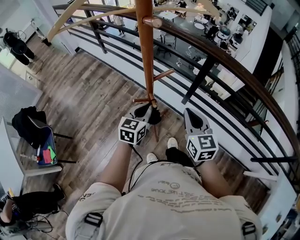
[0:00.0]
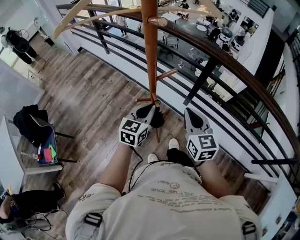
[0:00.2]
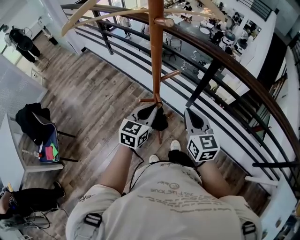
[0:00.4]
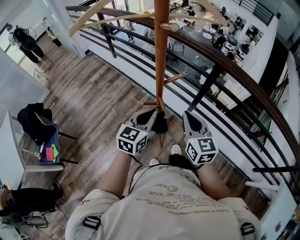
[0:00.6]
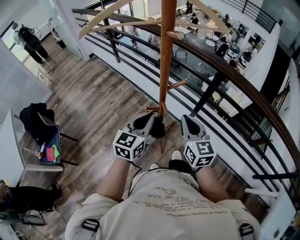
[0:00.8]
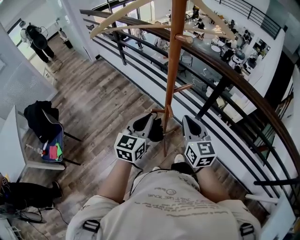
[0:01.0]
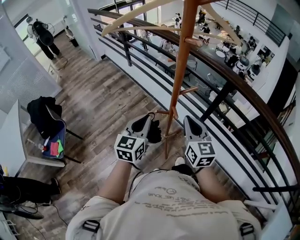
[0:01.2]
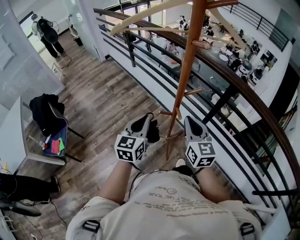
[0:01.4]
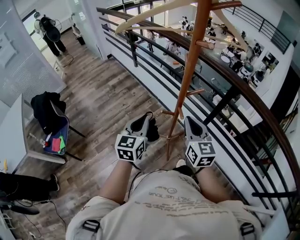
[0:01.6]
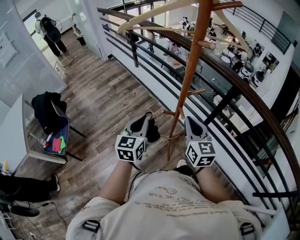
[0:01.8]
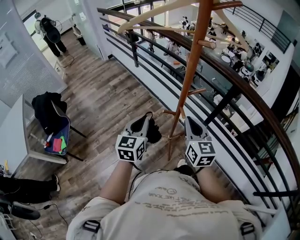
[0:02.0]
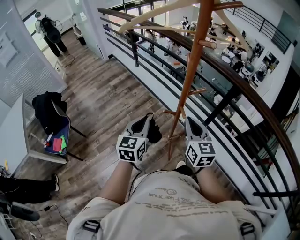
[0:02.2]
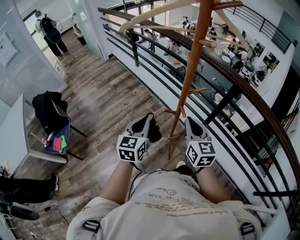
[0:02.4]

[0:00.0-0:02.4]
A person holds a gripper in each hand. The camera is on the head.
0:00.0 to 0:01.2: The left gripper travels to the left, upward and backward by some 15 cm, while the right gripper heads to the left, covering approximately 10 cm.
0:01.2 to 0:02.4: There are only small adjustments of the grippers.

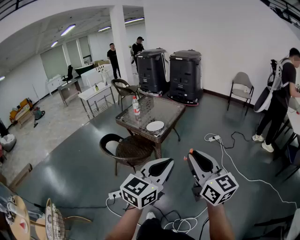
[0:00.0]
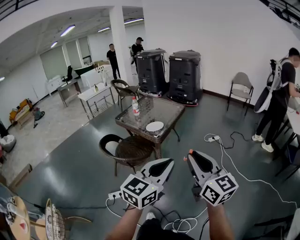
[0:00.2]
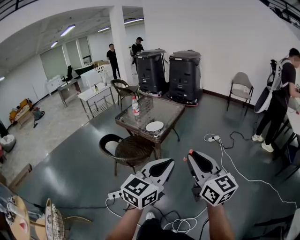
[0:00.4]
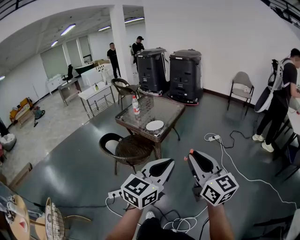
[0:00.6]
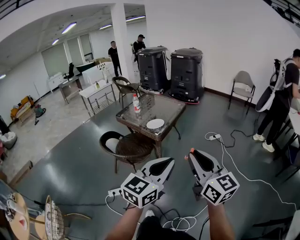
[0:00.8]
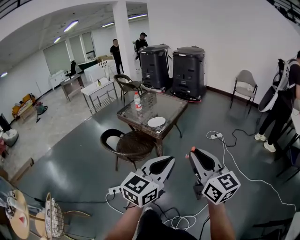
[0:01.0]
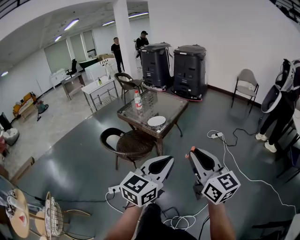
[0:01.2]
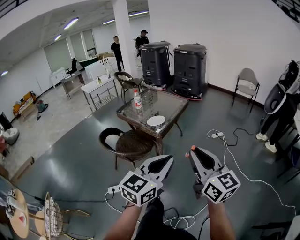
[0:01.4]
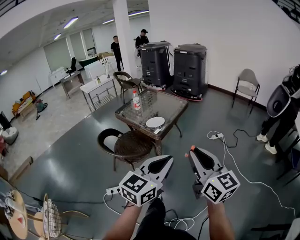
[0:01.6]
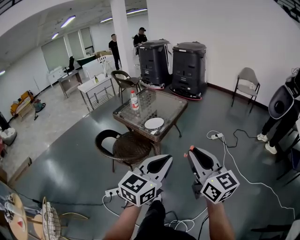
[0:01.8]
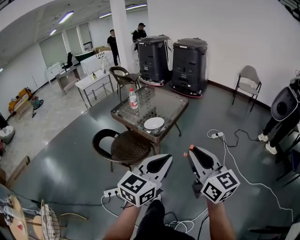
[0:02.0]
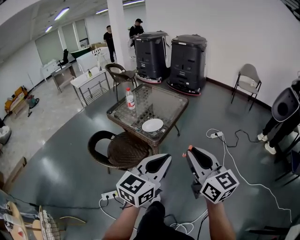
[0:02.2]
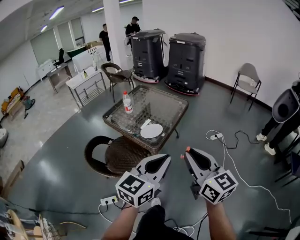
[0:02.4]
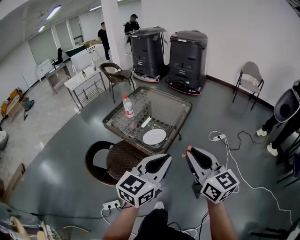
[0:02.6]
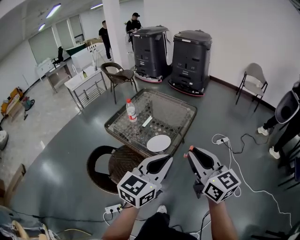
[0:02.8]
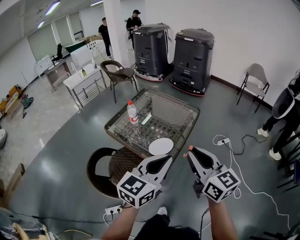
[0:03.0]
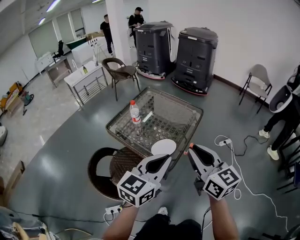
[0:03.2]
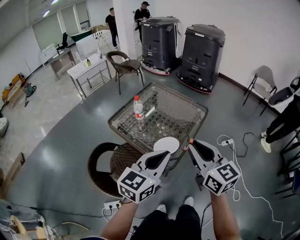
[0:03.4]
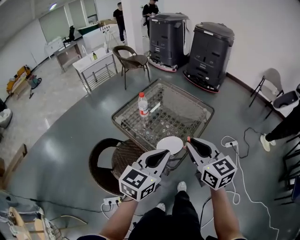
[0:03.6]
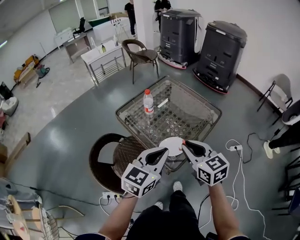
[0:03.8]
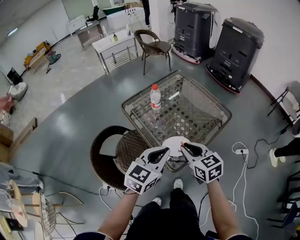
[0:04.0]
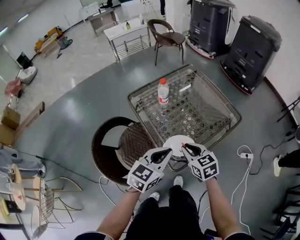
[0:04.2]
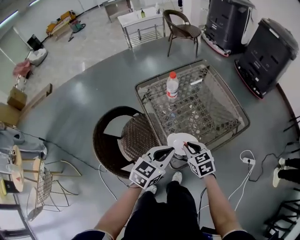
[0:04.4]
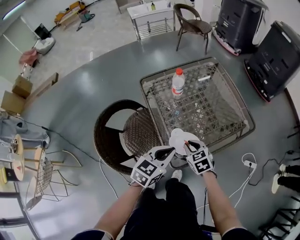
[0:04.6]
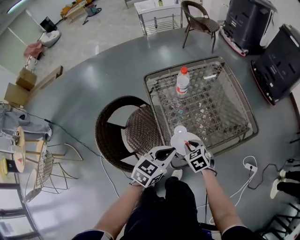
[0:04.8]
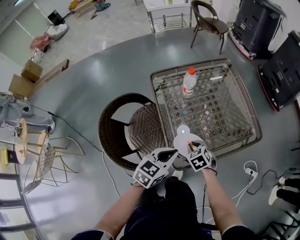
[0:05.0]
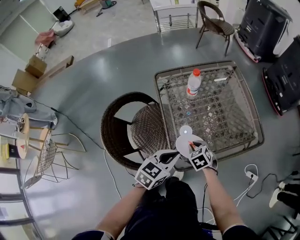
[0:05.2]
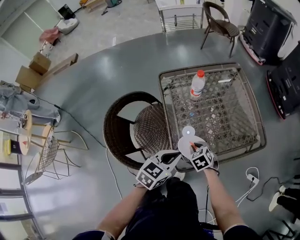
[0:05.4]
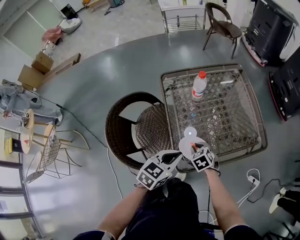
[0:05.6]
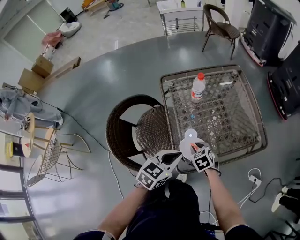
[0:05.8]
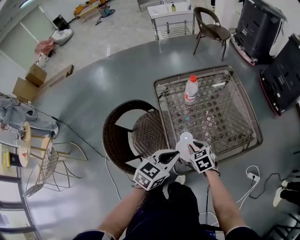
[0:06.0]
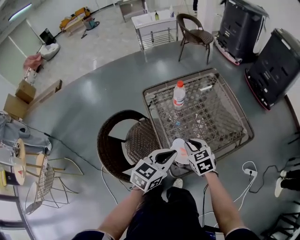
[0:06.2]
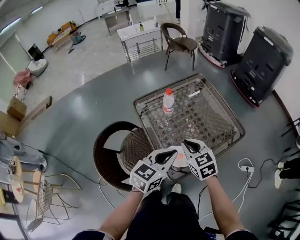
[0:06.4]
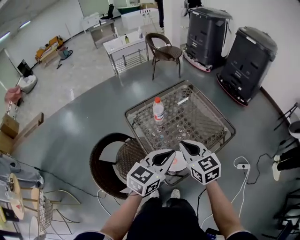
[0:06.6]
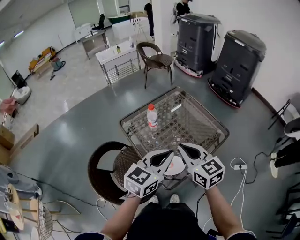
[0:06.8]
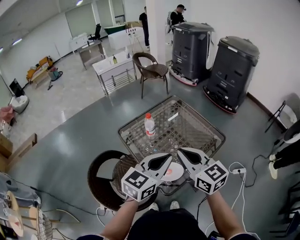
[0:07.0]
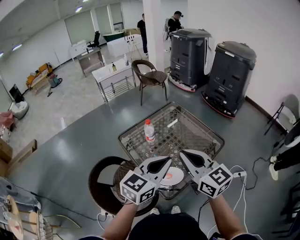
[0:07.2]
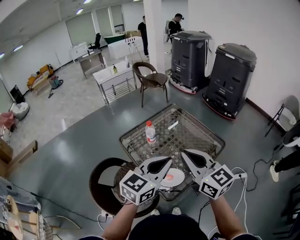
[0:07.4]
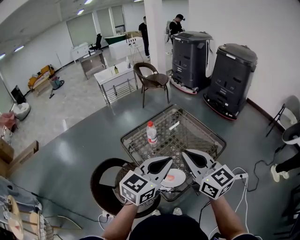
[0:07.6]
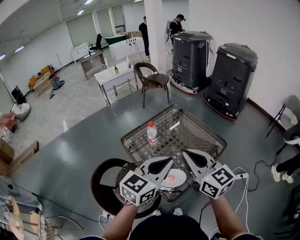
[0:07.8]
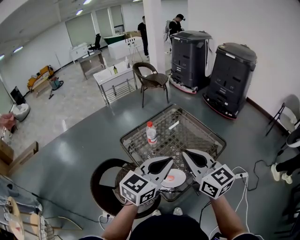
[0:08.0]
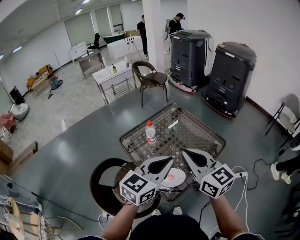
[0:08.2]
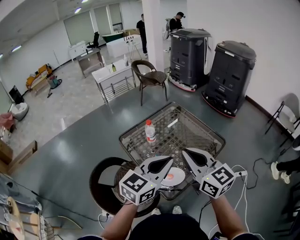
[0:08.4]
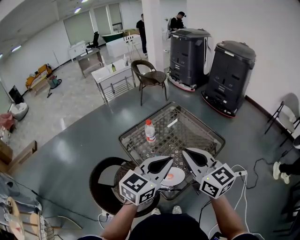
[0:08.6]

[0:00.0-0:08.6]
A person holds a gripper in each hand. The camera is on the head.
0:00.0 to 0:01.4: The grippers make only small movements.
0:01.4 to 0:02.8: Both grippers move forward, approximately 35 cm.
0:02.8 to 0:04.4: The left gripper heads downward, covering some 20 cm, and changes its angle by roughly 30 degrees, while the right gripper heads downward, covering approximately 30 cm, and angles its fingers downward, by some 40 degrees.
0:04.4 to 0:05.8: The right gripper moves downward, roughly 10 cm, and turns by approximately 20 degrees.
0:05.8 to 0:07.2: The right gripper heads upward, covering approximately 40 cm, and angles its fingers upward, by roughly 60 degrees. Meanwhile the left gripper is displaced upward by about 20 cm, and changes its angle by roughly 30 degrees.
0:07.2 to 0:08.6: There are only small adjustments of the grippers.

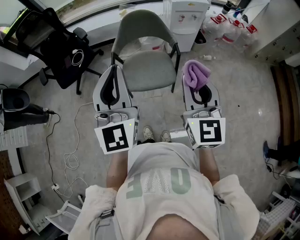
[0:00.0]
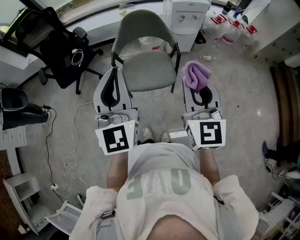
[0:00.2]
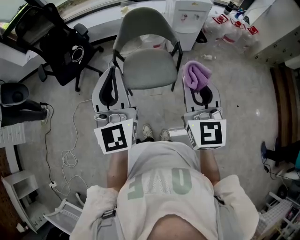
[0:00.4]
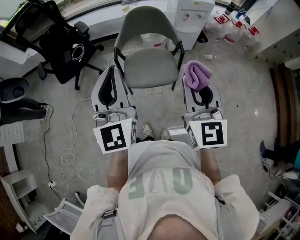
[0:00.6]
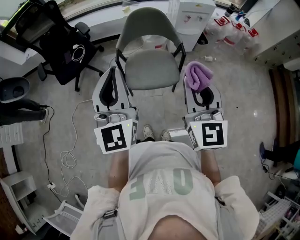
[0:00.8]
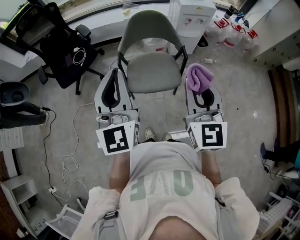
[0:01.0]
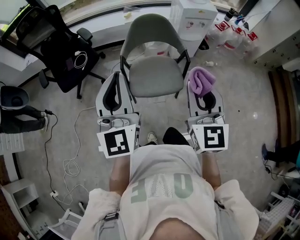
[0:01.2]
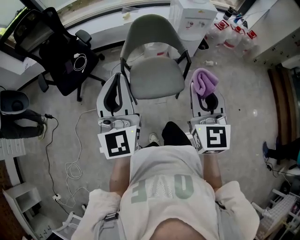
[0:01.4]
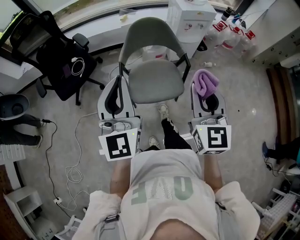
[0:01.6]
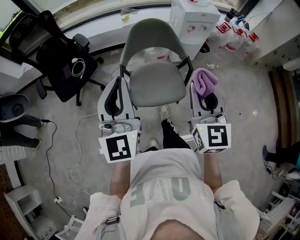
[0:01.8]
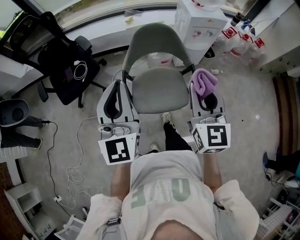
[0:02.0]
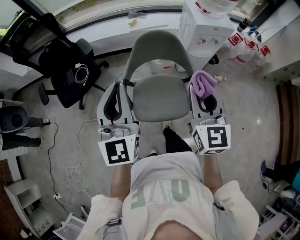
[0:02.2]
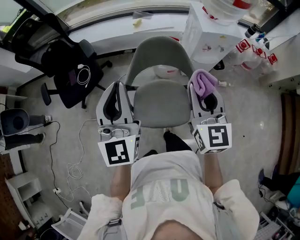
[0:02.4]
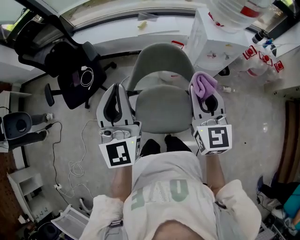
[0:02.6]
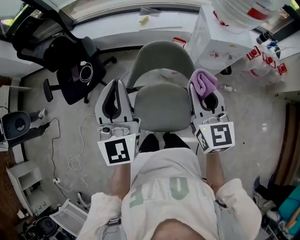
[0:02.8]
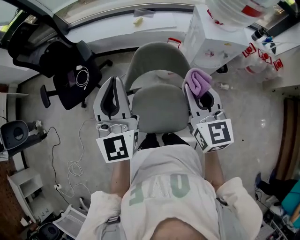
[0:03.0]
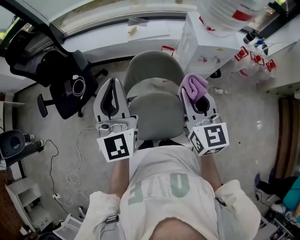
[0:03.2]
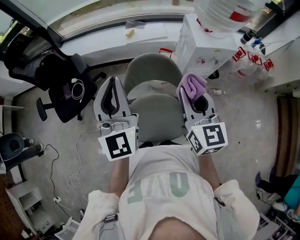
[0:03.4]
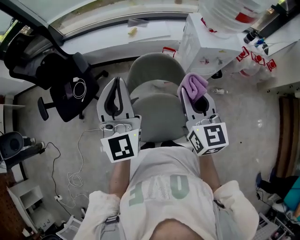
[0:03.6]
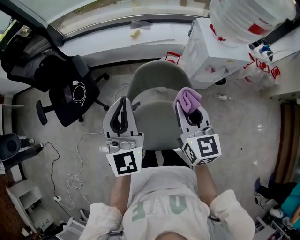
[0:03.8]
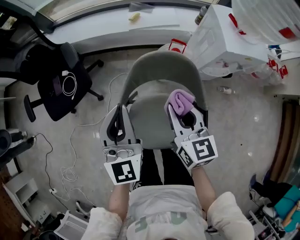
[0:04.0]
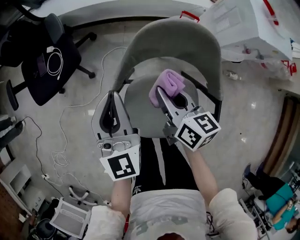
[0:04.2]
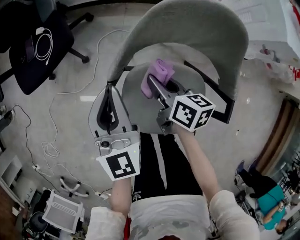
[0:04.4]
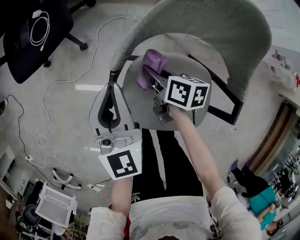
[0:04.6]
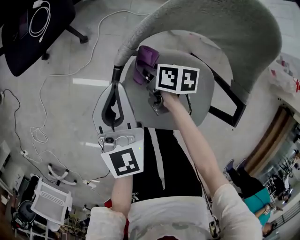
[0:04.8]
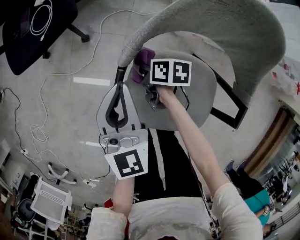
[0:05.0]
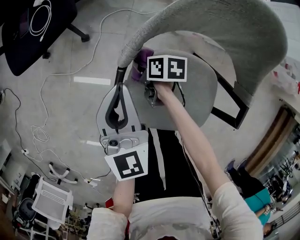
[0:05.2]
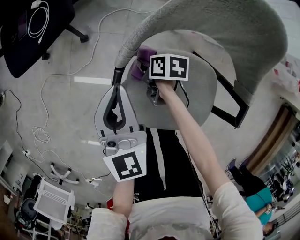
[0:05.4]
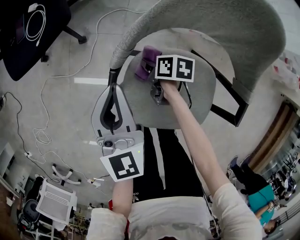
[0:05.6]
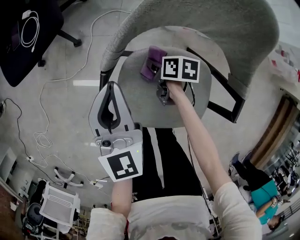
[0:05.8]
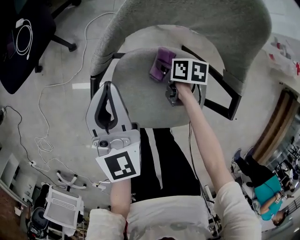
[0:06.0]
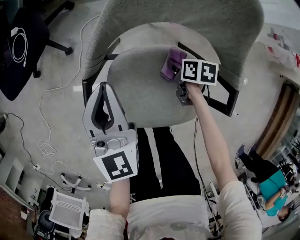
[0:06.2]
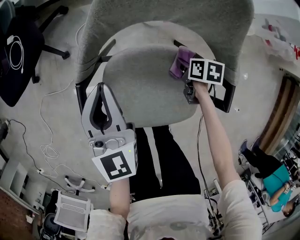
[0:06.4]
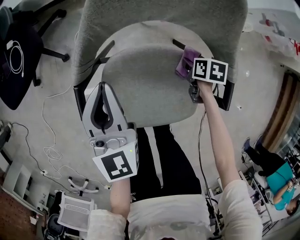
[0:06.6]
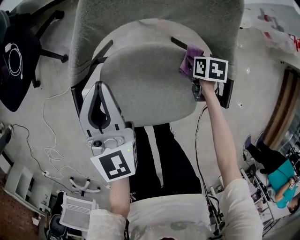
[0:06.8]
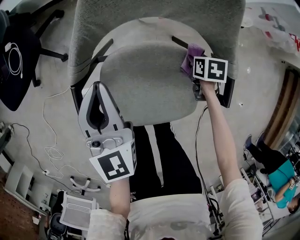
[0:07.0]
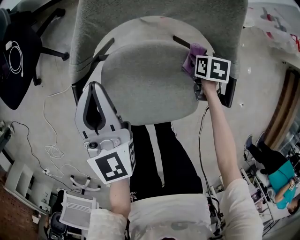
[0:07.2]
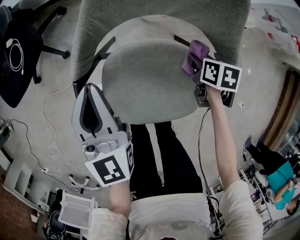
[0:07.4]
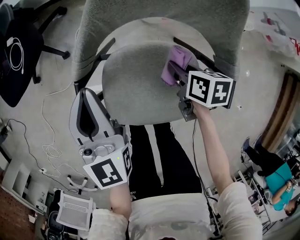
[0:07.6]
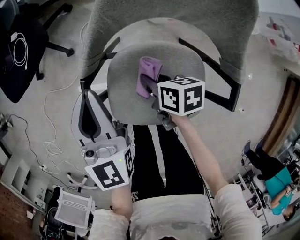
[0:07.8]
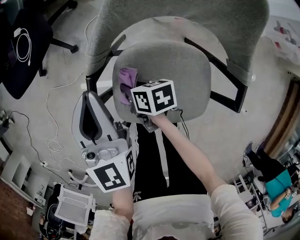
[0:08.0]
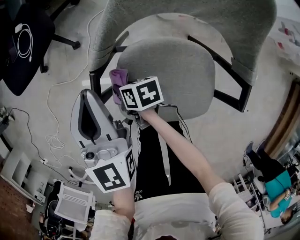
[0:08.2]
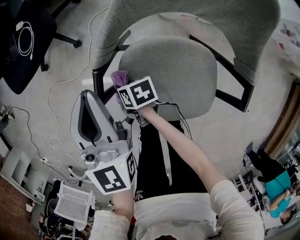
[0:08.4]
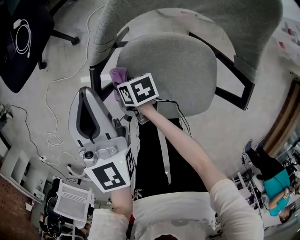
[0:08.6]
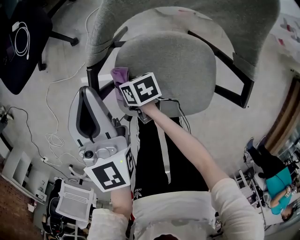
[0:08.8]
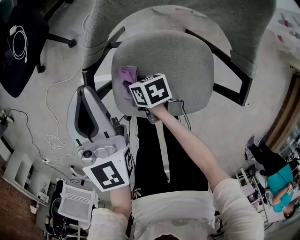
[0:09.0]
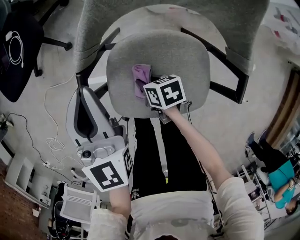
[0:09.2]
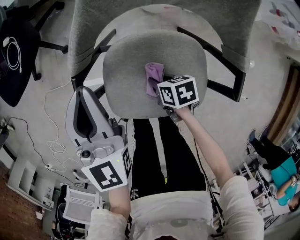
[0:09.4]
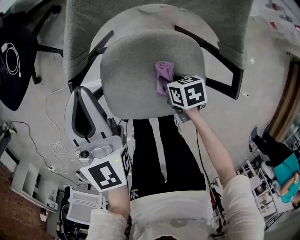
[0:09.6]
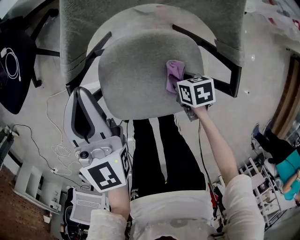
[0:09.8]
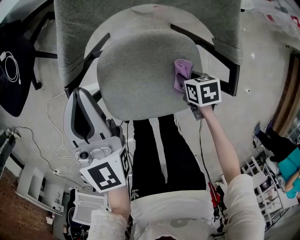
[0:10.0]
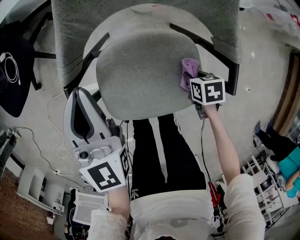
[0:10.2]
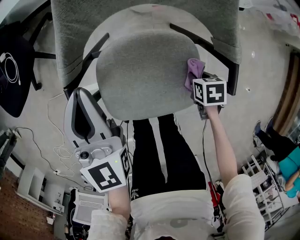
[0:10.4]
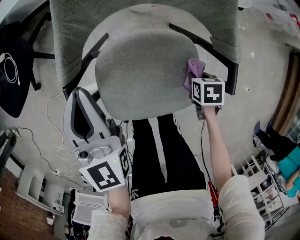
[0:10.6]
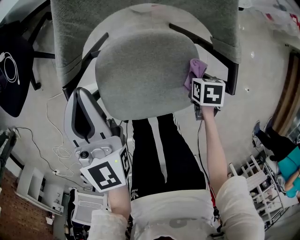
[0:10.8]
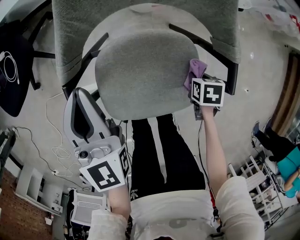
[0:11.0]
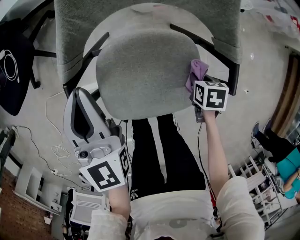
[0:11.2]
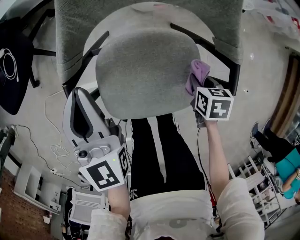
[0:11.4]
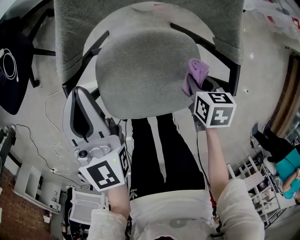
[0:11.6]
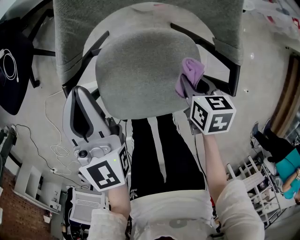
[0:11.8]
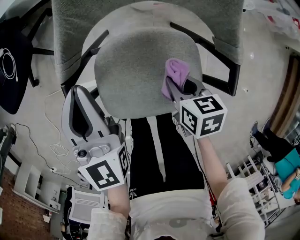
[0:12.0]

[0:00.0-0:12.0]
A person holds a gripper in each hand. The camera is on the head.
0:00.0 to 0:01.6: Both grippers move to the left and forward, roughly 10 cm.
0:01.6 to 0:03.0: Both grippers travel together forward, some 30 cm. The right gripper changes its angle by about 20 degrees.
0:03.0 to 0:04.4: The right gripper goes roughly 40 cm downward and to the left, and swivels roughly 50 degrees; the left gripper moves downward, some 35 cm, and rotates about 20 degrees.
0:04.4 to 0:06.0: The right gripper shifts some 20 cm downward, and swivels some 30 degrees; the left gripper is displaced downward by approximately 10 cm.
0:06.0 to 0:07.6: The right gripper is displaced upward by roughly 10 cm.
0:07.6 to 0:09.0: The right gripper shifts some 25 cm to the left, and changes its angle by approximately 30 degrees.
0:09.0 to 0:10.4: The right gripper shifts by some 30 cm, and angles its fingers downward, by approximately 30 degrees. Meanwhile the left gripper shifts by roughly 5 cm.
0:10.4 to 0:12.0: The right gripper moves some 15 cm, and changes its angle by approximately 20 degrees.
